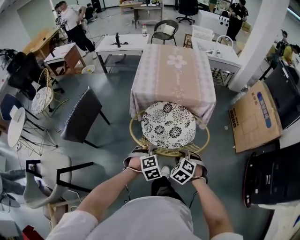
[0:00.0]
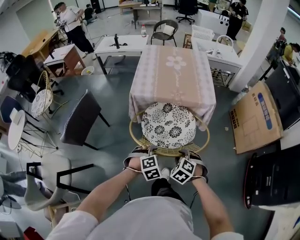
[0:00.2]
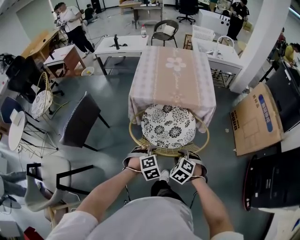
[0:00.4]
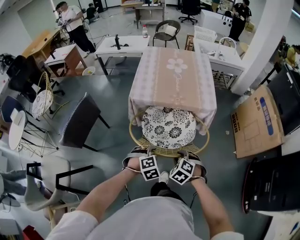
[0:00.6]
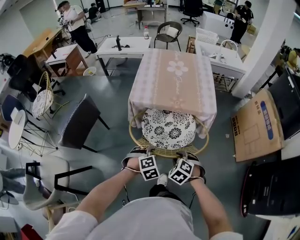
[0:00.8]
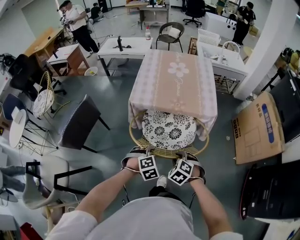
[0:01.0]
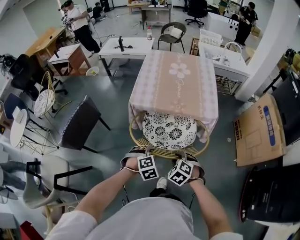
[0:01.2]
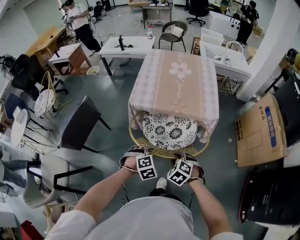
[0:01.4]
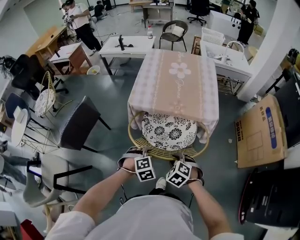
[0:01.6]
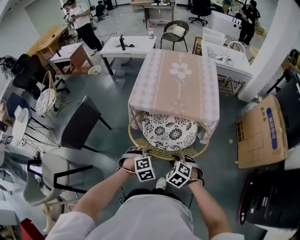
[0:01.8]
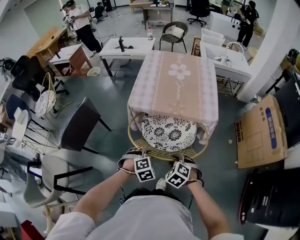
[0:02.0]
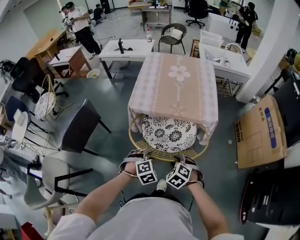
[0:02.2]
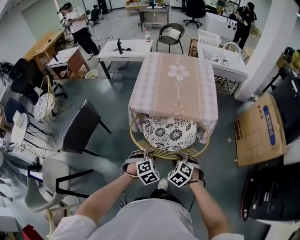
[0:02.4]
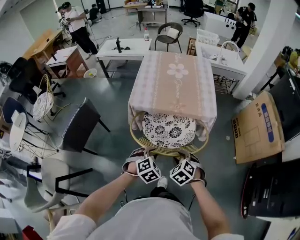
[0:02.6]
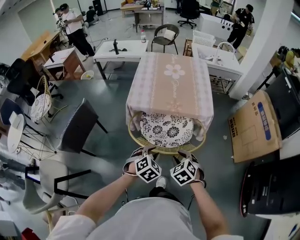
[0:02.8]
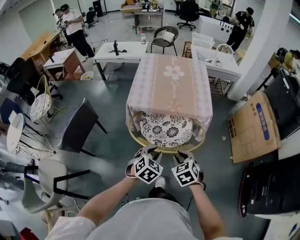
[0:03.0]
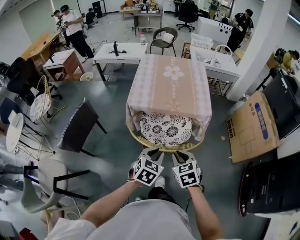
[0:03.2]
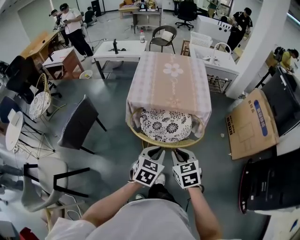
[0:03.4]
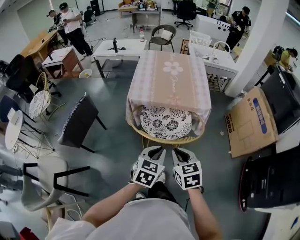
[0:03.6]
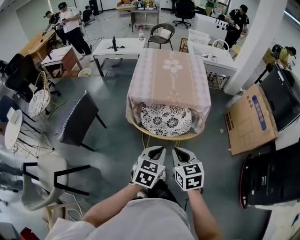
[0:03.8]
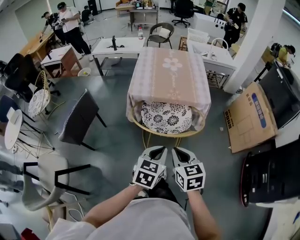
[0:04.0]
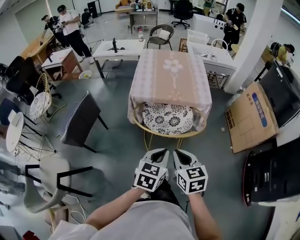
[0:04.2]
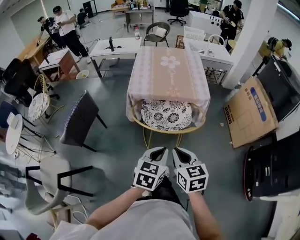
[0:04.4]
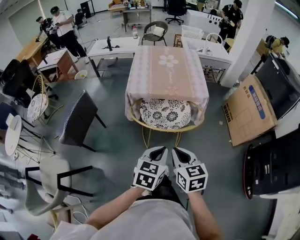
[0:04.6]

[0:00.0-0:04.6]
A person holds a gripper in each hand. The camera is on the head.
0.0 to 1.6 s: Both grippers travel together forward, approximately 10 cm.
1.6 to 3.0 s: Both grippers move upward, about 10 cm. The right gripper rotates approximately 30 degrees. Meanwhile the left gripper turns by some 40 degrees.
3.0 to 4.6 s: Both grippers move backward and upward, approximately 15 cm. The left gripper changes its angle by roughly 30 degrees, and closes. Meanwhile the right gripper swivels about 30 degrees.

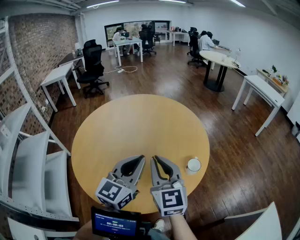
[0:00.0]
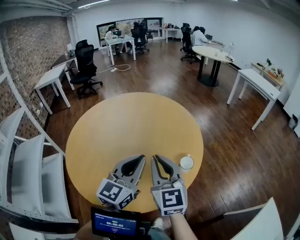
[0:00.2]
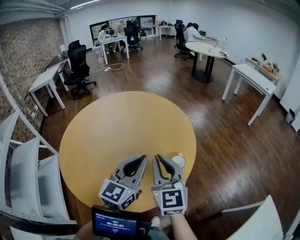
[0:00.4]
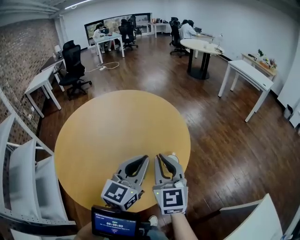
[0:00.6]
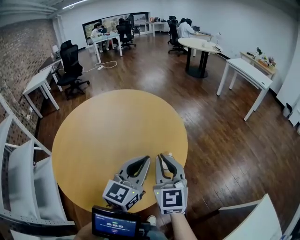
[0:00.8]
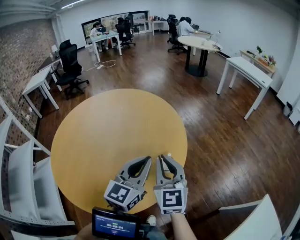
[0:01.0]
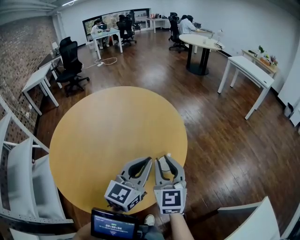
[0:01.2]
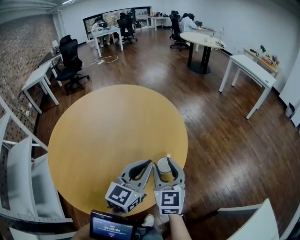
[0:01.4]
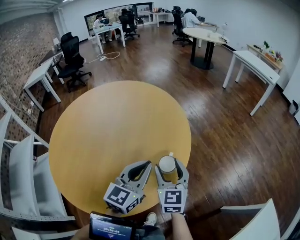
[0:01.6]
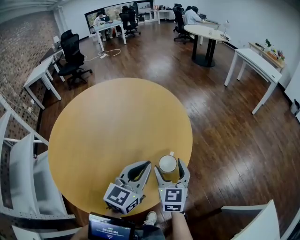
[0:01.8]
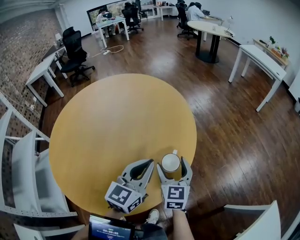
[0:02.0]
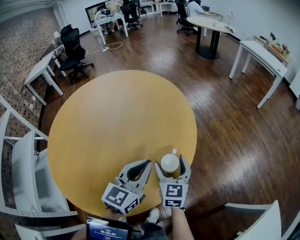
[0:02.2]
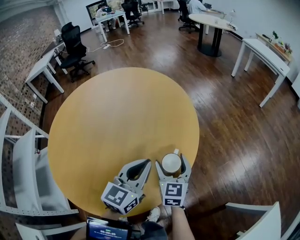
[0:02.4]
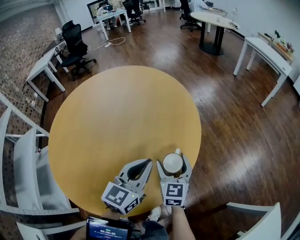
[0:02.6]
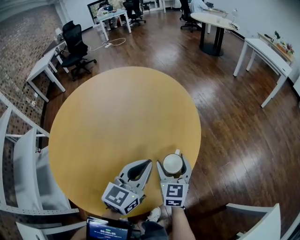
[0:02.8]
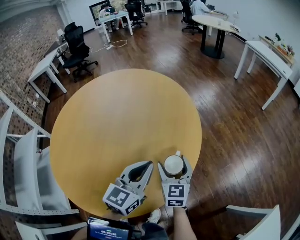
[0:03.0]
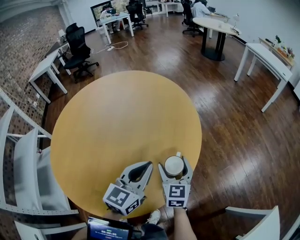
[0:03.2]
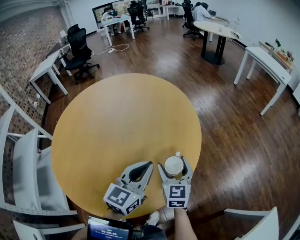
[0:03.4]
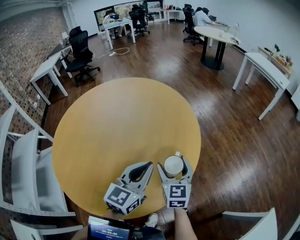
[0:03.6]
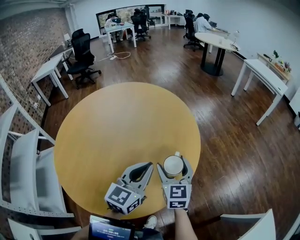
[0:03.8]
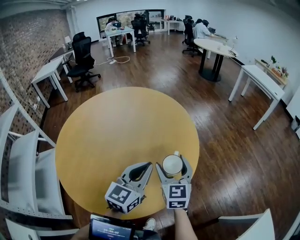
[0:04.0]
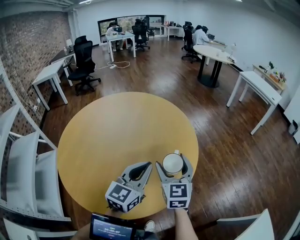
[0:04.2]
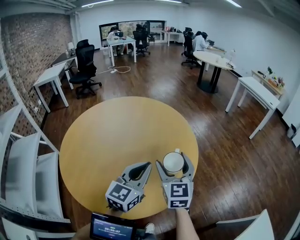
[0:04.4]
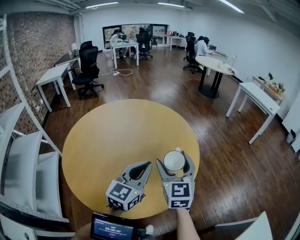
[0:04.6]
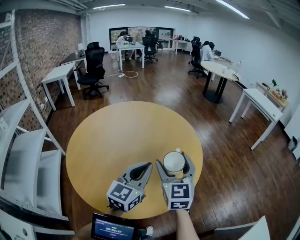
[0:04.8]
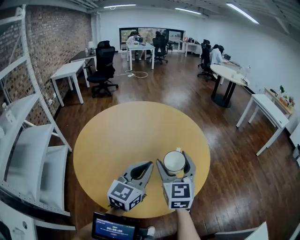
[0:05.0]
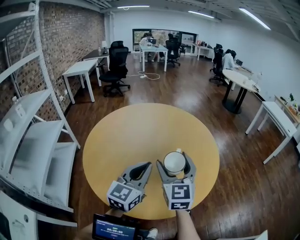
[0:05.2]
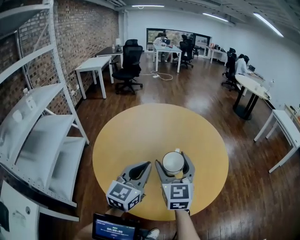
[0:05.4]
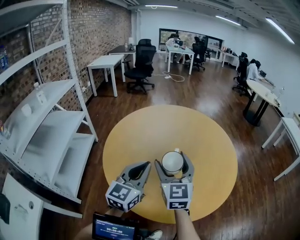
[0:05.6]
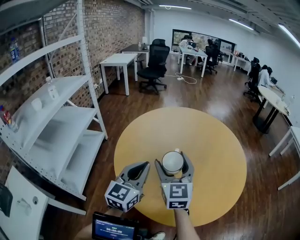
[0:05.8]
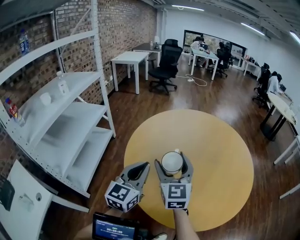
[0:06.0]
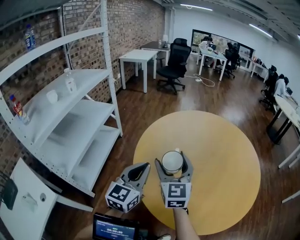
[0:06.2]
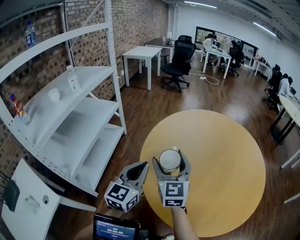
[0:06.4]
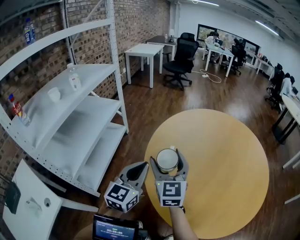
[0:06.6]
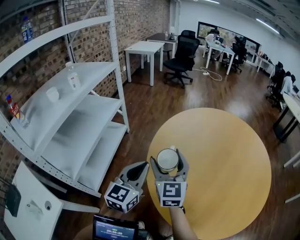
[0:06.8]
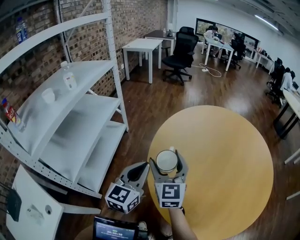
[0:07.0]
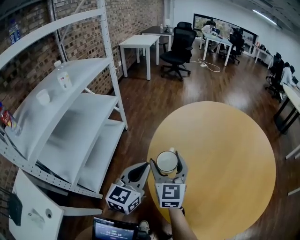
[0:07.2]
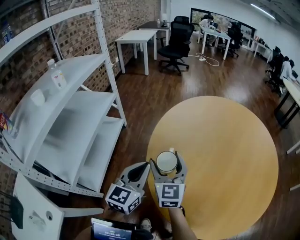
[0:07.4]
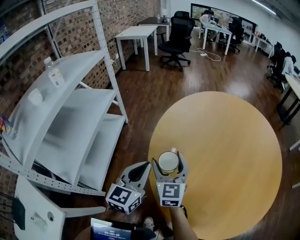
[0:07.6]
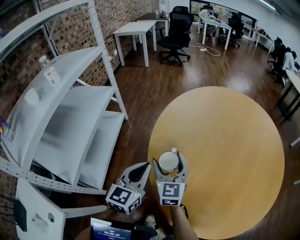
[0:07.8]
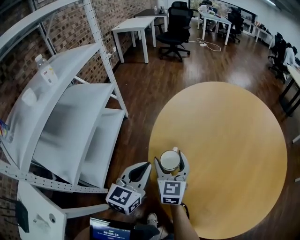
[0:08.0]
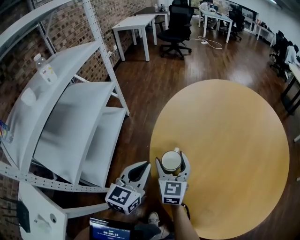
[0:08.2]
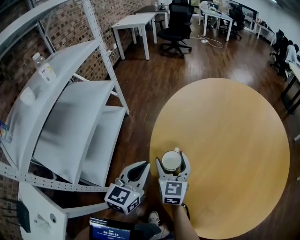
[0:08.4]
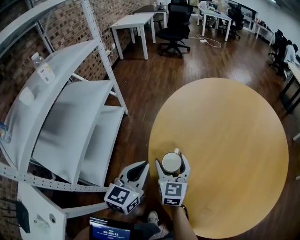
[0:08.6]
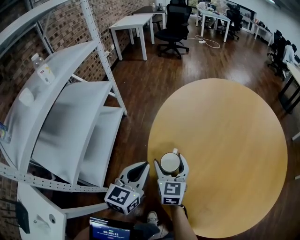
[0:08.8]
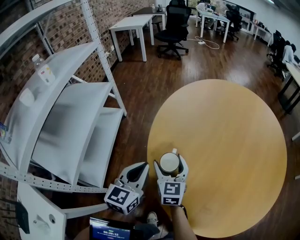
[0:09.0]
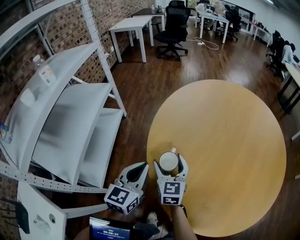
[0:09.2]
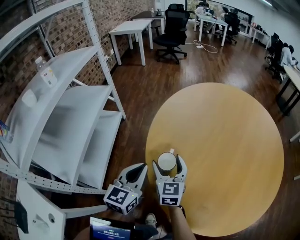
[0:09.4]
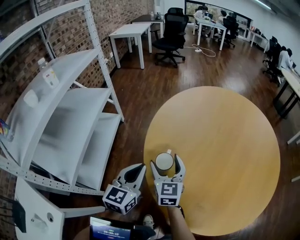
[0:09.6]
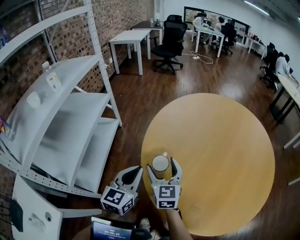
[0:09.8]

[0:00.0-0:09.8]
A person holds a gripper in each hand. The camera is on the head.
0.0 to 1.4 s: Both grippers move to the right, downward and forward, some 20 cm. The right gripper opens its fingers.
1.4 to 2.8 s: The right gripper shifts approximately 15 cm downward, and opens its fingers. Meanwhile the left gripper travels downward by some 5 cm.
2.8 to 4.2 s: The right gripper moves upward, roughly 15 cm, while the left gripper travels upward by approximately 10 cm.
4.2 to 5.6 s: The left gripper changes place by some 25 cm, and rotates some 30 degrees. Meanwhile the right gripper changes place by roughly 30 cm, and changes its angle by approximately 30 degrees.
5.6 to 7.0 s: The grippers both shift to the left by approximately 30 cm.
7.0 to 8.4 s: The left gripper is displaced downward by approximately 10 cm; the right gripper shifts approximately 15 cm downward.
8.4 to 9.8 s: The right gripper travels upward by approximately 5 cm. The left gripper shifts by some 5 cm.

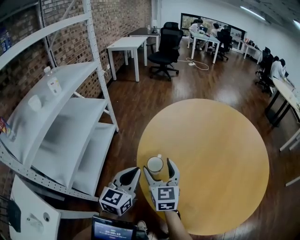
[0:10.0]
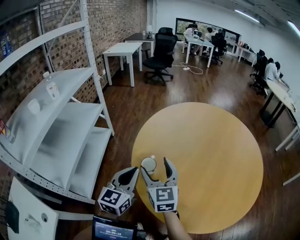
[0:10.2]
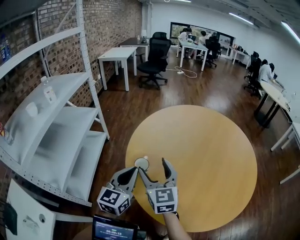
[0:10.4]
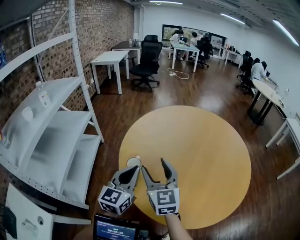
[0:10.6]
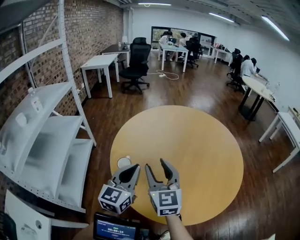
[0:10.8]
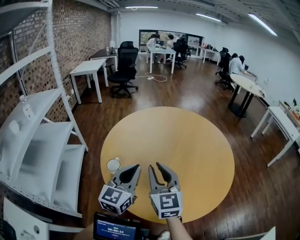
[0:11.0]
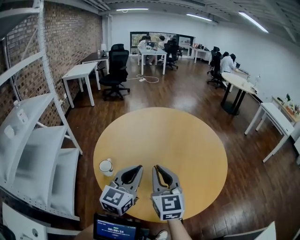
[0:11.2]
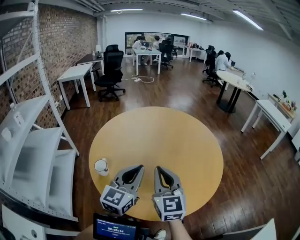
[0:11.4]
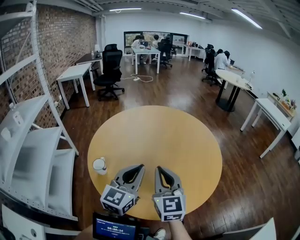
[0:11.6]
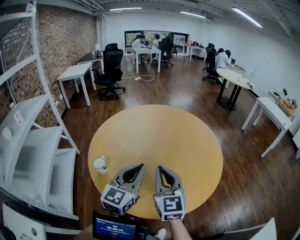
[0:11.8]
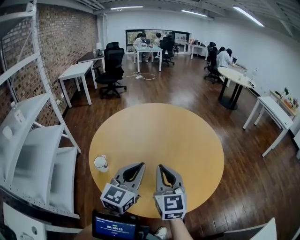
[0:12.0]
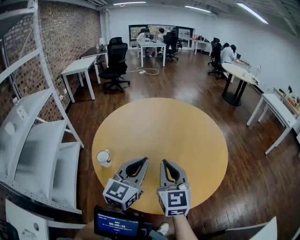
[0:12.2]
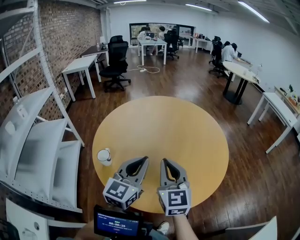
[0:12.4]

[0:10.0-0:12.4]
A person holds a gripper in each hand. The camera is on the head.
10.0 to 11.2 s: The right gripper is displaced to the right, upward and backward by approximately 30 cm, and closes up; the left gripper is displaced to the right and upward by roughly 25 cm, and turns by some 20 degrees.
11.2 to 12.4 s: The left gripper shifts by some 5 cm. The right gripper moves to the right, approximately 5 cm.

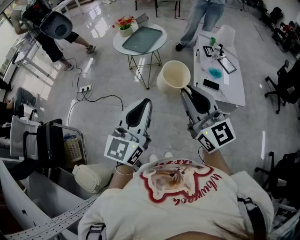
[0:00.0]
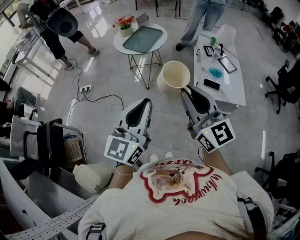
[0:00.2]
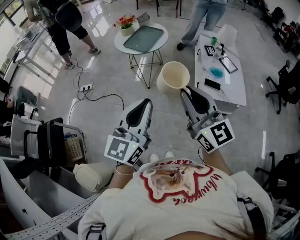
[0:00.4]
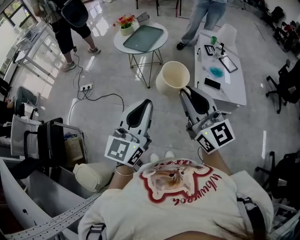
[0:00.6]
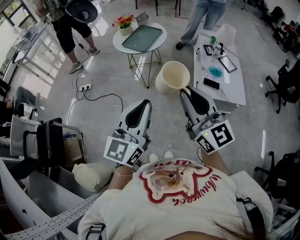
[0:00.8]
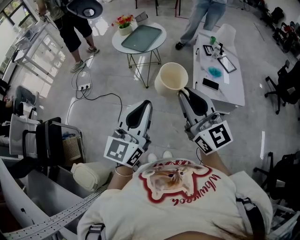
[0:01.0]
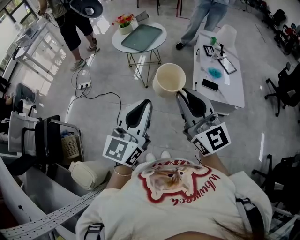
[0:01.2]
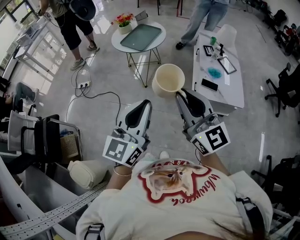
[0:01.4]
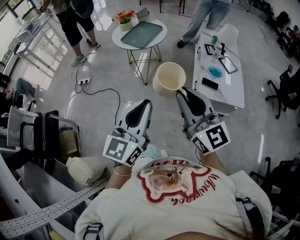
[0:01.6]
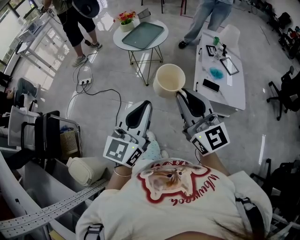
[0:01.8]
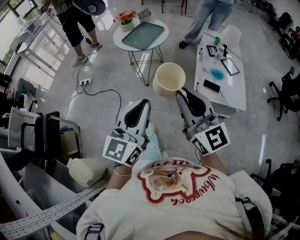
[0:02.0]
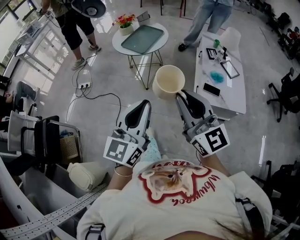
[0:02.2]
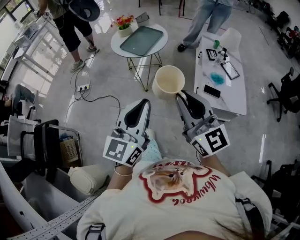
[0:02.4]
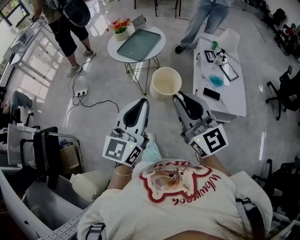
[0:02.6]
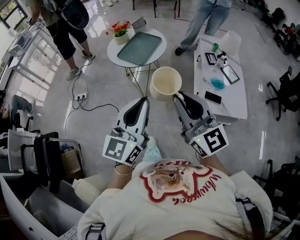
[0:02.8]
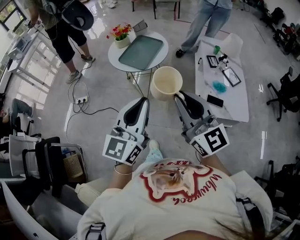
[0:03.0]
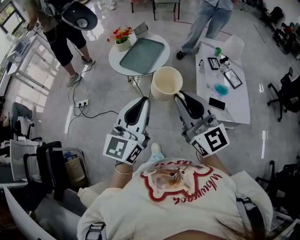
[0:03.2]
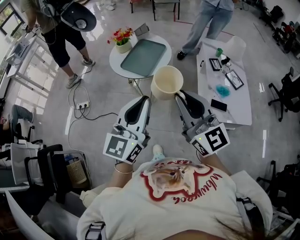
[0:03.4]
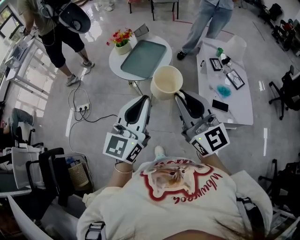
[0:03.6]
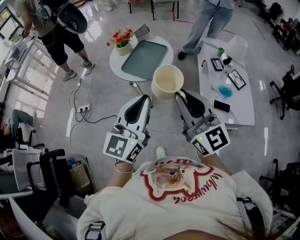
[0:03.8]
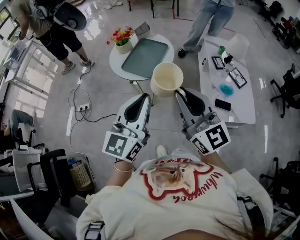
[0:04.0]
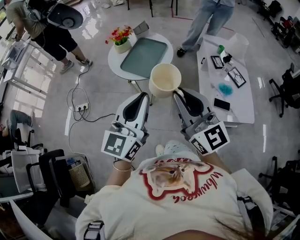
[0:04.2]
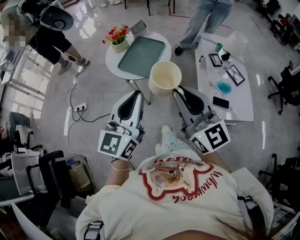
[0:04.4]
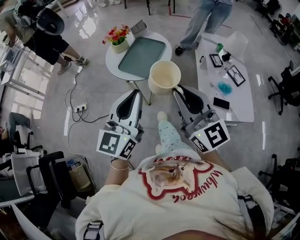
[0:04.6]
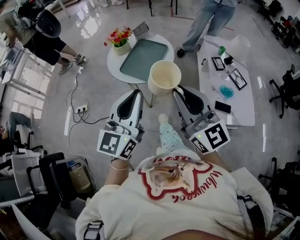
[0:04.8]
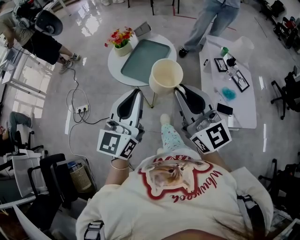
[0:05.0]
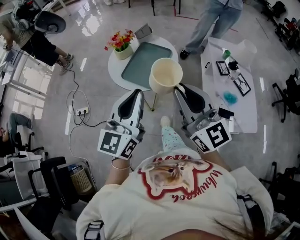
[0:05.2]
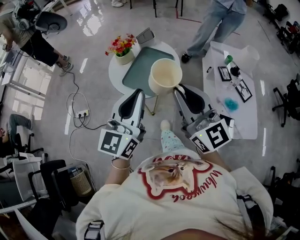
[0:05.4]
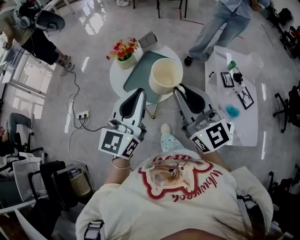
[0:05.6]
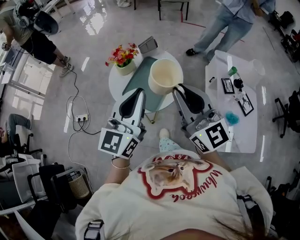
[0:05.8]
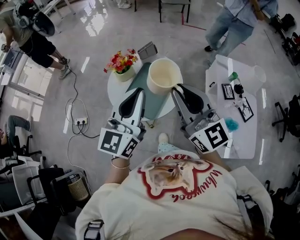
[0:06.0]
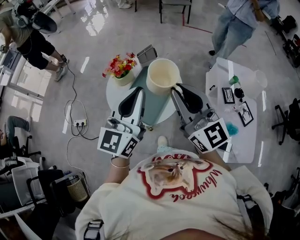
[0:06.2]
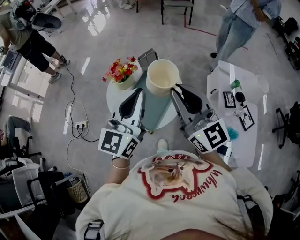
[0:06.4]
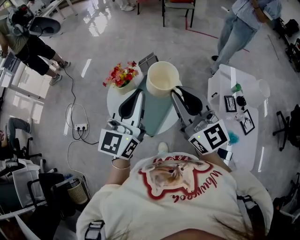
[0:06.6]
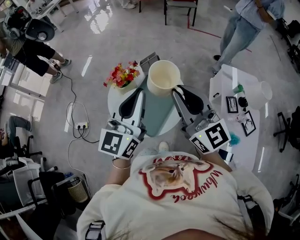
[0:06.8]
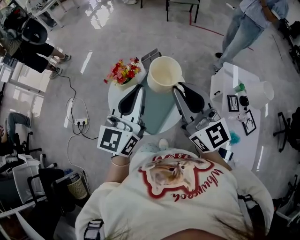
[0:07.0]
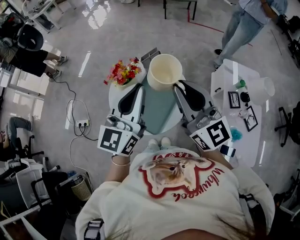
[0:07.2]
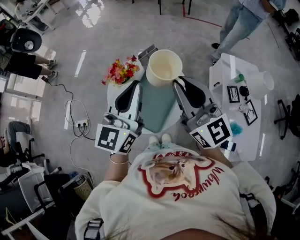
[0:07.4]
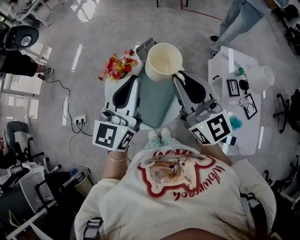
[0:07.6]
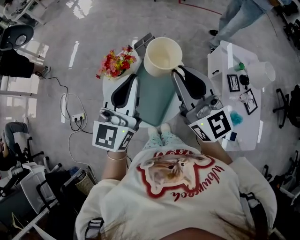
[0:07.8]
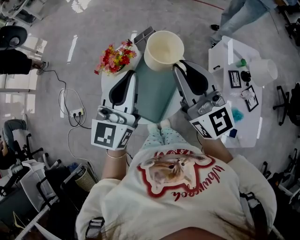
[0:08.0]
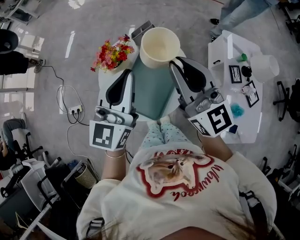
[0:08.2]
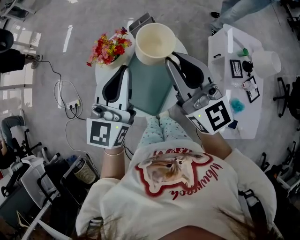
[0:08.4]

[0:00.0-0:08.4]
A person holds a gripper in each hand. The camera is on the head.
0.0 to 1.4 s: The grippers make only small movements.
1.4 to 2.8 s: The grippers both shift forward by roughly 15 cm.
2.8 to 4.2 s: Both grippers move forward and to the left, about 15 cm.
4.2 to 5.6 s: Both grippers move forward, approximately 20 cm.
5.6 to 7.0 s: The grippers both shift forward by roughly 20 cm.
7.0 to 8.4 s: The right gripper heads forward and downward, covering about 10 cm, while the left gripper travels downward by about 5 cm.
